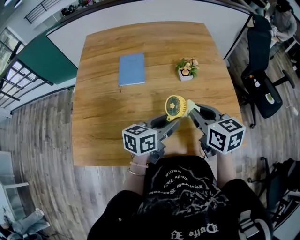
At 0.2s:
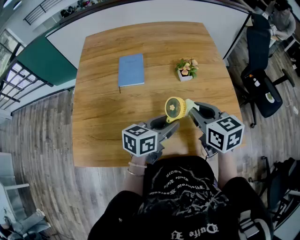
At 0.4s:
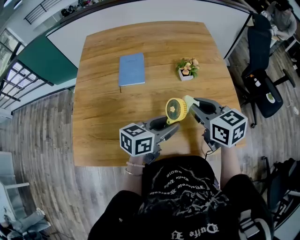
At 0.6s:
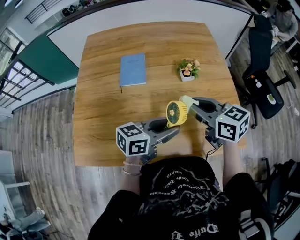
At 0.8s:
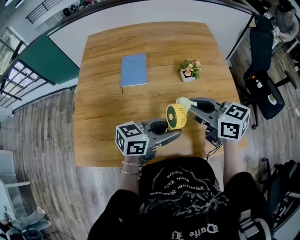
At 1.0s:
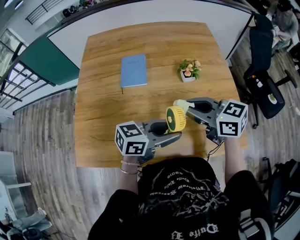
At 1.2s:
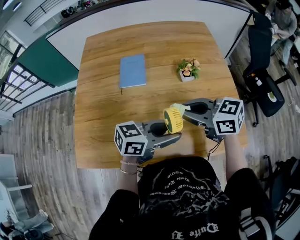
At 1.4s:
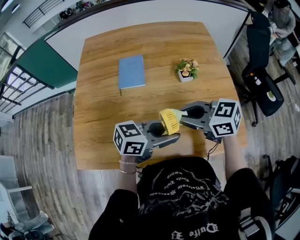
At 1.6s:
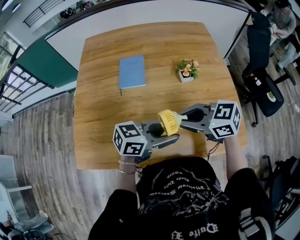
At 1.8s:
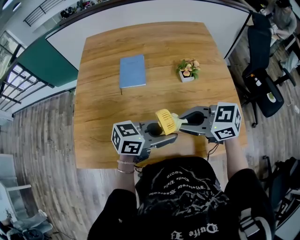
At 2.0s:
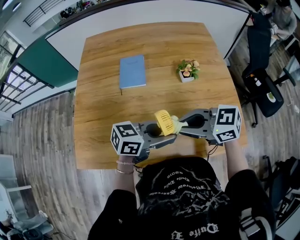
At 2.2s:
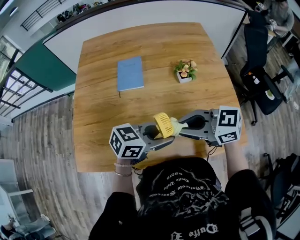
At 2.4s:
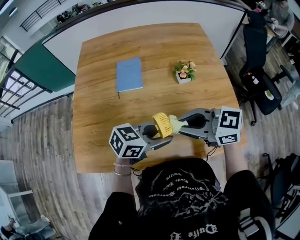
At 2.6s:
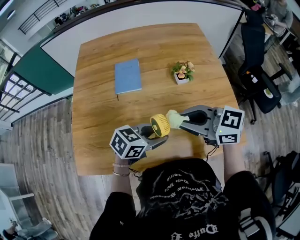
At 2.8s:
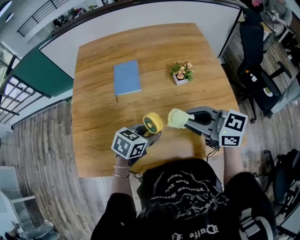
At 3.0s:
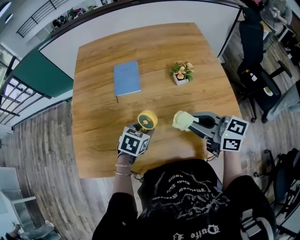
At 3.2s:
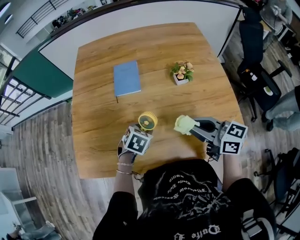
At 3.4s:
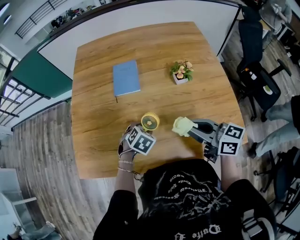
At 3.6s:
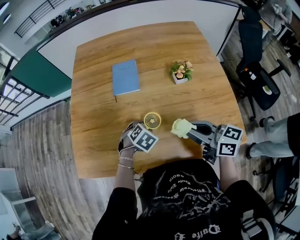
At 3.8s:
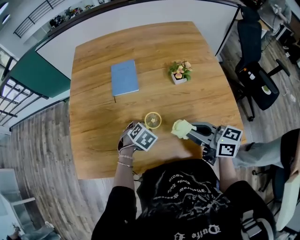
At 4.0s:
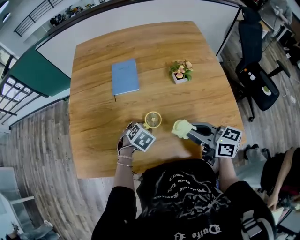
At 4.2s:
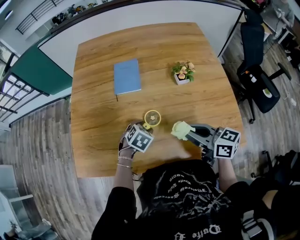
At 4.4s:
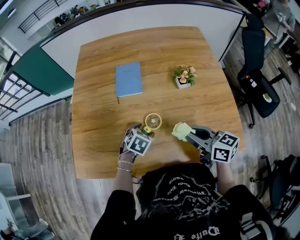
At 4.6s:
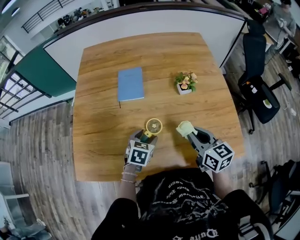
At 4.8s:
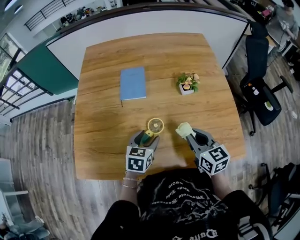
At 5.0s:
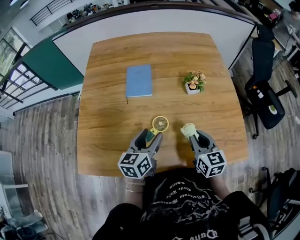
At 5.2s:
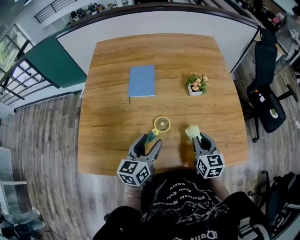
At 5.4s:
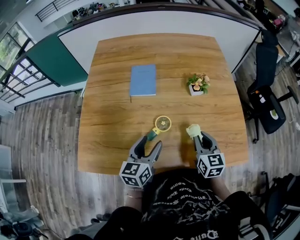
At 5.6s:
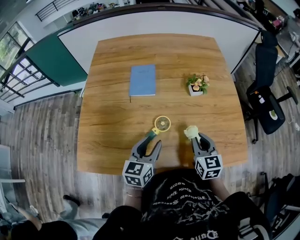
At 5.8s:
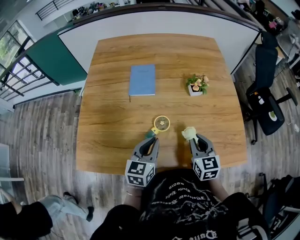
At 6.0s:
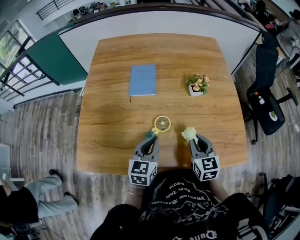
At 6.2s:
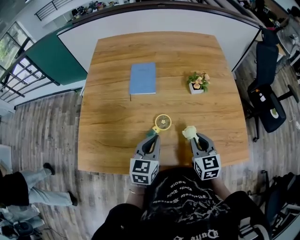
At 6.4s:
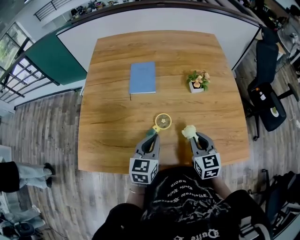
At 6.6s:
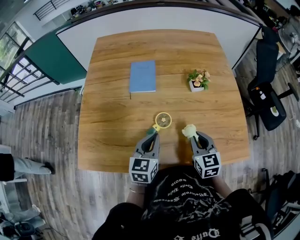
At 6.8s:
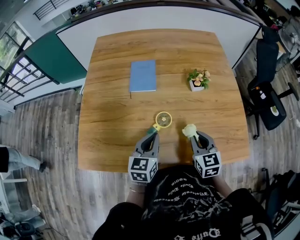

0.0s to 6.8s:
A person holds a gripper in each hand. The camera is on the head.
0.0s to 1.4s: The right gripper changes place by approximately 5 cm, and turns by about 40 degrees. Meanwhile the left gripper moves approximately 5 cm, and changes its angle by about 30 degrees.
1.4s to 2.8s: The left gripper heads downward, covering about 10 cm, and changes its angle by some 30 degrees.
2.8s to 4.0s: Both grippers move downward, some 10 cm. The right gripper turns by some 20 degrees. Meanwhile the left gripper changes its angle by approximately 30 degrees.
4.0s to 5.4s: The right gripper moves downward, about 5 cm, and turns by roughly 40 degrees; the left gripper is displaced upward and backward by about 15 cm, and angles its fingers upward, by approximately 50 degrees.
5.4s to 6.8s: The left gripper closes up.

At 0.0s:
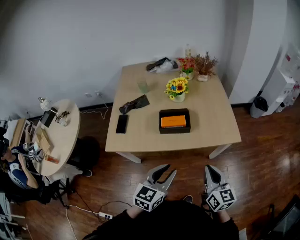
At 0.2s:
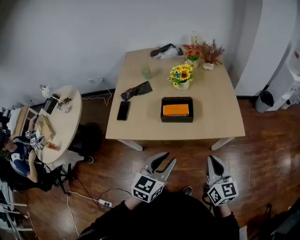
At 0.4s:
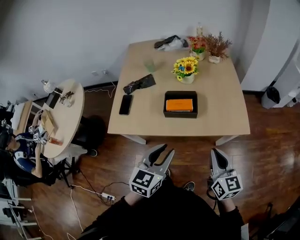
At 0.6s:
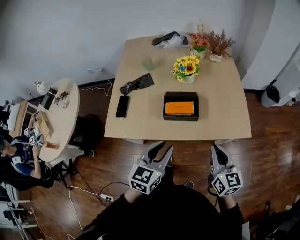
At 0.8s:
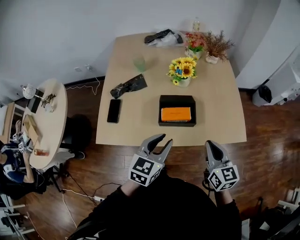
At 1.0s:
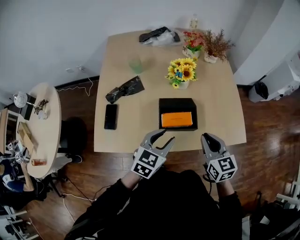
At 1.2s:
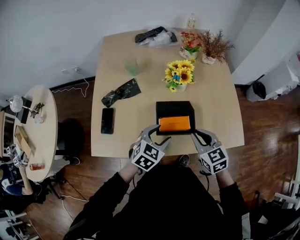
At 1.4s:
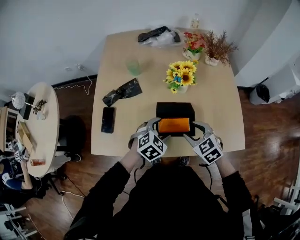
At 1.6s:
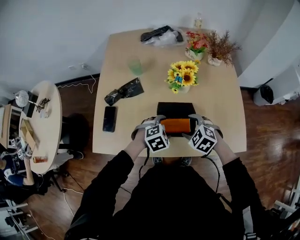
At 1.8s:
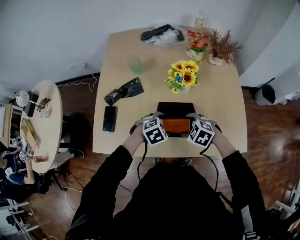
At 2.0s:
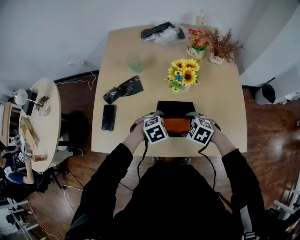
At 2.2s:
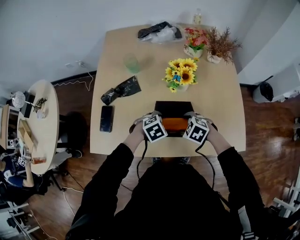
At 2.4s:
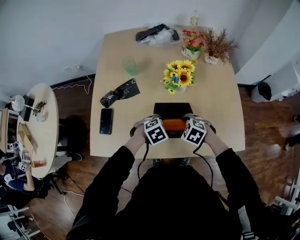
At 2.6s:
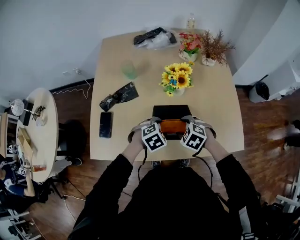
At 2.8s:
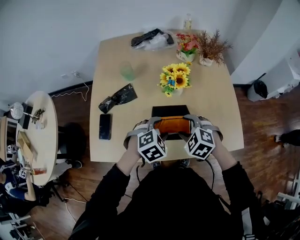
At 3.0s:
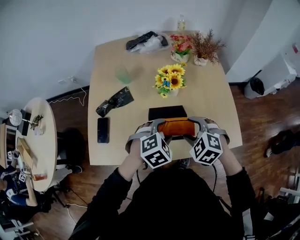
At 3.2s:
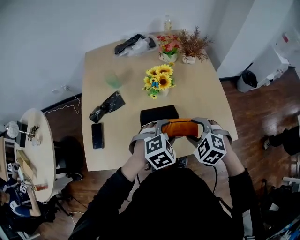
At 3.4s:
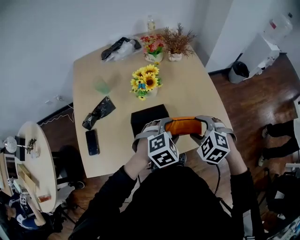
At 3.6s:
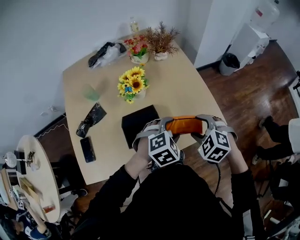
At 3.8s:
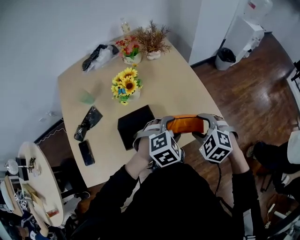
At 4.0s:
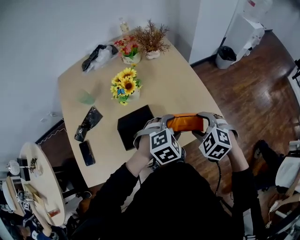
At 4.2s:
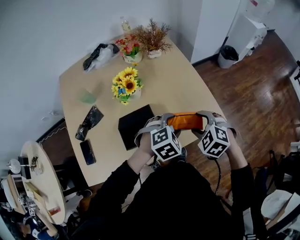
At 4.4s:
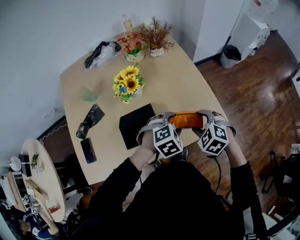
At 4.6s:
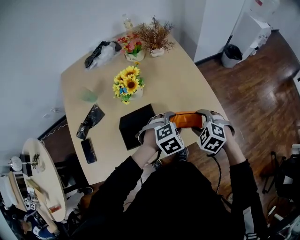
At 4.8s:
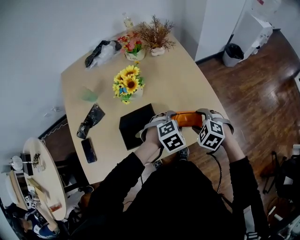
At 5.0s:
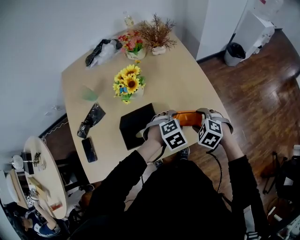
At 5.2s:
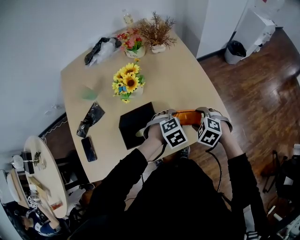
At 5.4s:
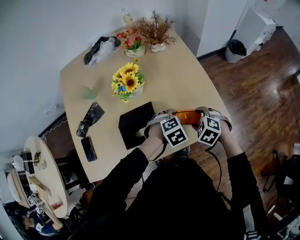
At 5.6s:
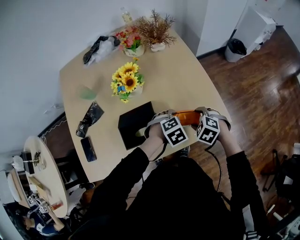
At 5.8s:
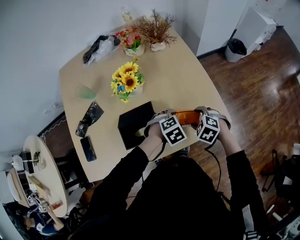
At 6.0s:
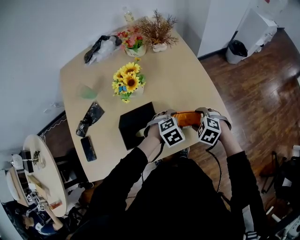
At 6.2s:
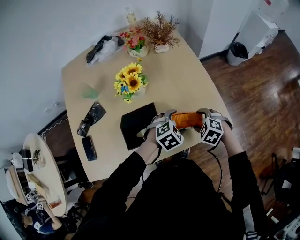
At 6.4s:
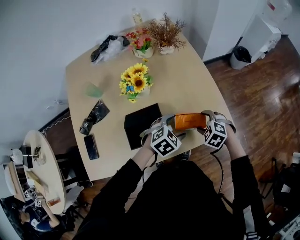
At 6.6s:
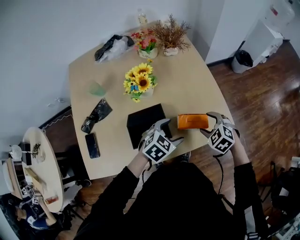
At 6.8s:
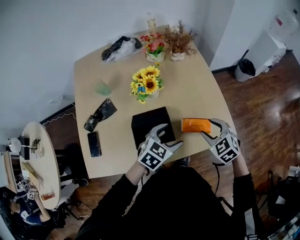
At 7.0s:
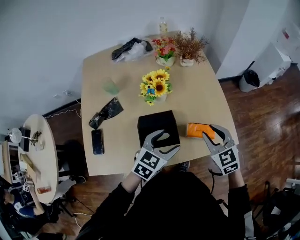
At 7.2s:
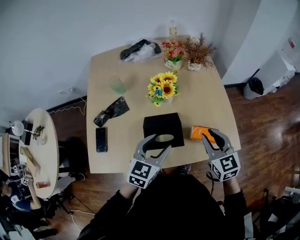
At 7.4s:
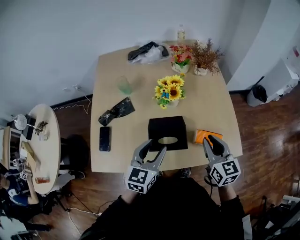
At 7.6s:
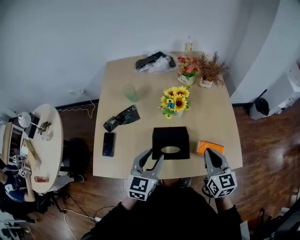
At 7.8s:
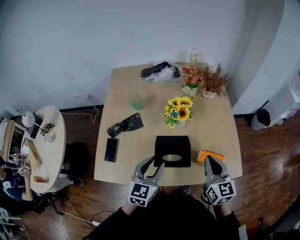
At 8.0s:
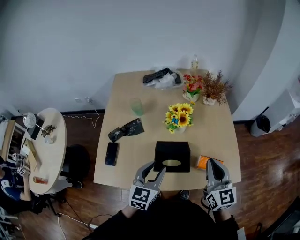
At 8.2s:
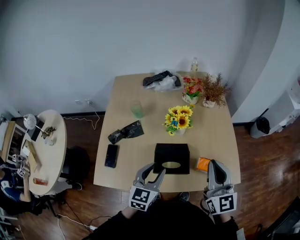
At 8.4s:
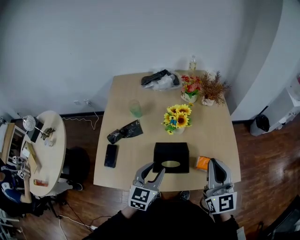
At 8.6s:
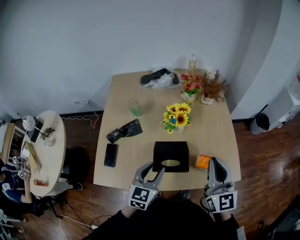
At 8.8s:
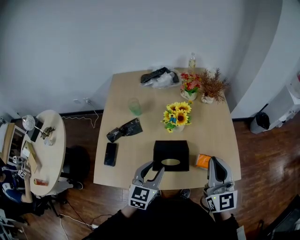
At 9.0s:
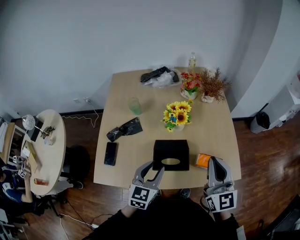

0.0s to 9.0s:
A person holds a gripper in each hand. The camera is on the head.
0.0s to 1.6s: The grippers both shift forward and downward by some 40 cm. The right gripper tips its fingers downward by approximately 40 degrees, and opens up. The left gripper tips its fingers downward by some 40 degrees, and opens.
1.6s to 3.0s: Both grippers travel together upward, roughly 10 cm.
3.0s to 4.4s: Both grippers move to the right, approximately 20 cm. The right gripper rotates about 20 degrees.
4.4s to 6.0s: The grippers both shift downward by about 10 cm.
6.0s to 7.6s: The left gripper travels to the left and upward by roughly 30 cm, and points its fingers about 40 degrees further upward, while the right gripper travels upward and to the left by some 25 cm, tilts its fingers some 50 degrees upward, and closes up.
7.6s to 9.0s: The right gripper moves upward, about 10 cm, and swivels about 20 degrees.

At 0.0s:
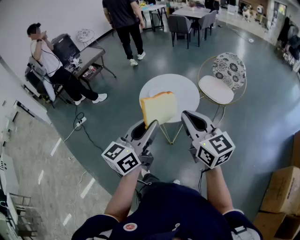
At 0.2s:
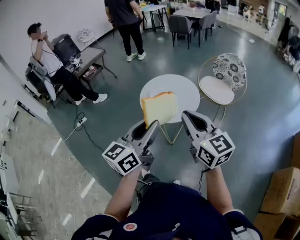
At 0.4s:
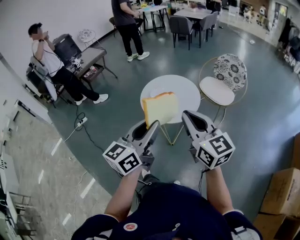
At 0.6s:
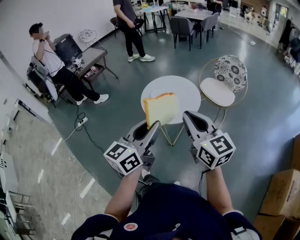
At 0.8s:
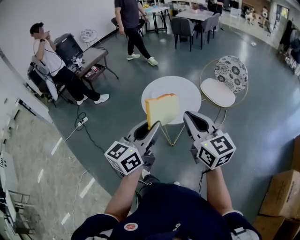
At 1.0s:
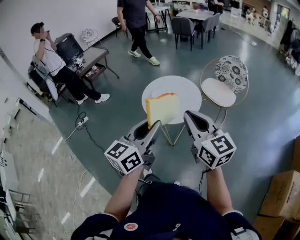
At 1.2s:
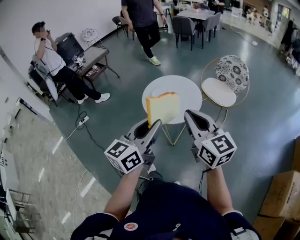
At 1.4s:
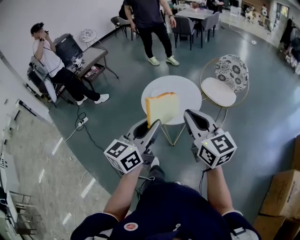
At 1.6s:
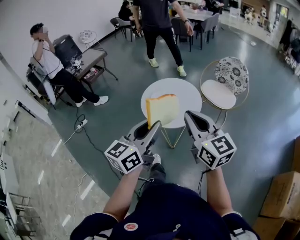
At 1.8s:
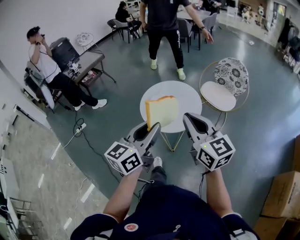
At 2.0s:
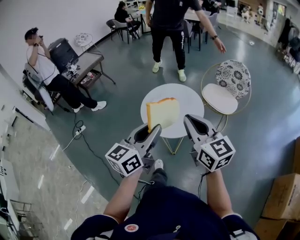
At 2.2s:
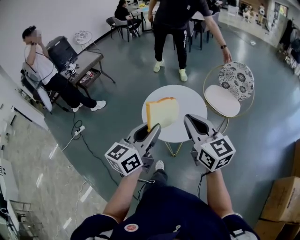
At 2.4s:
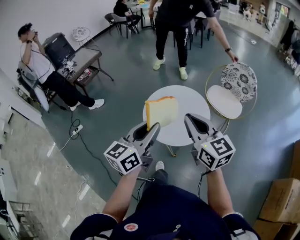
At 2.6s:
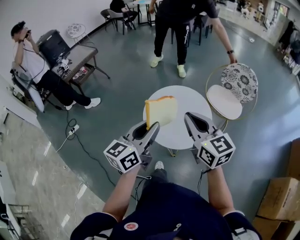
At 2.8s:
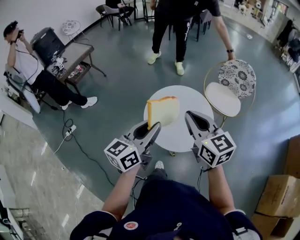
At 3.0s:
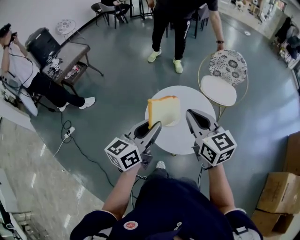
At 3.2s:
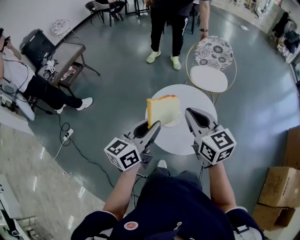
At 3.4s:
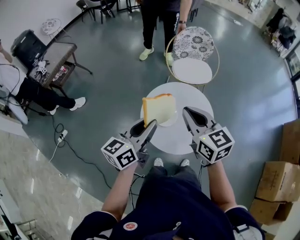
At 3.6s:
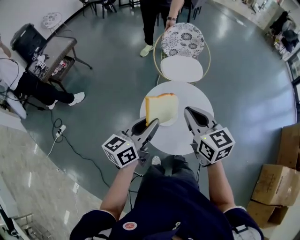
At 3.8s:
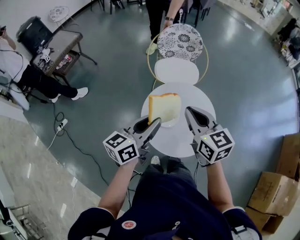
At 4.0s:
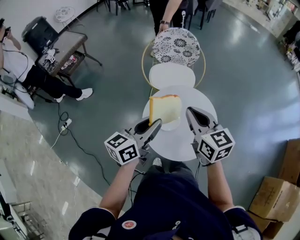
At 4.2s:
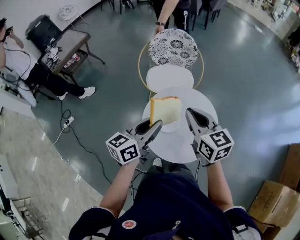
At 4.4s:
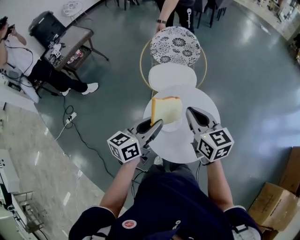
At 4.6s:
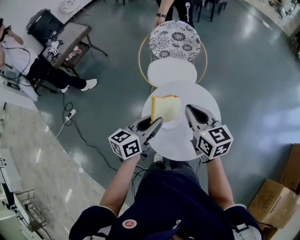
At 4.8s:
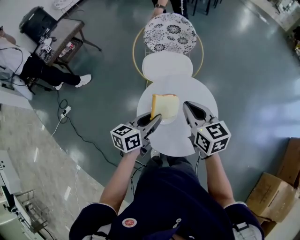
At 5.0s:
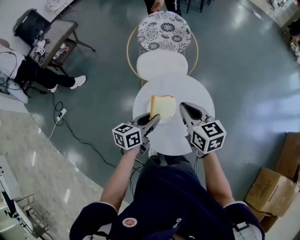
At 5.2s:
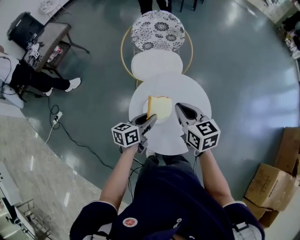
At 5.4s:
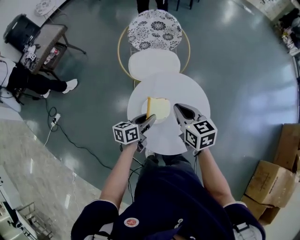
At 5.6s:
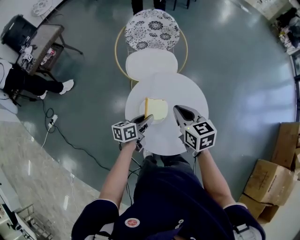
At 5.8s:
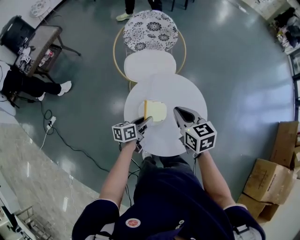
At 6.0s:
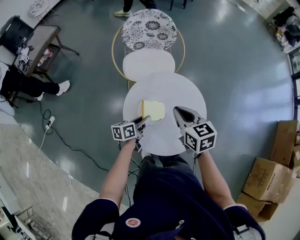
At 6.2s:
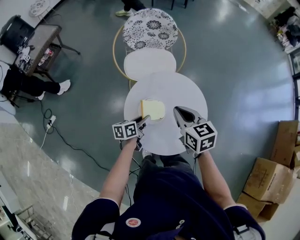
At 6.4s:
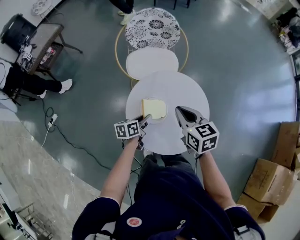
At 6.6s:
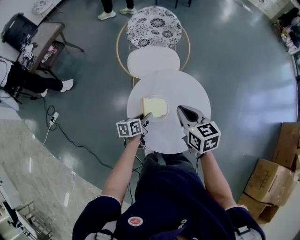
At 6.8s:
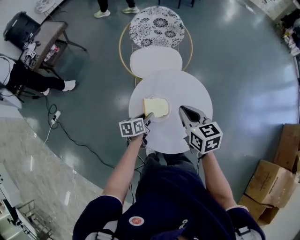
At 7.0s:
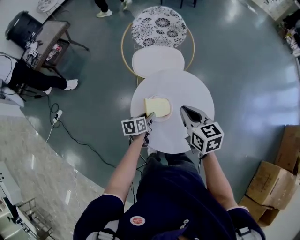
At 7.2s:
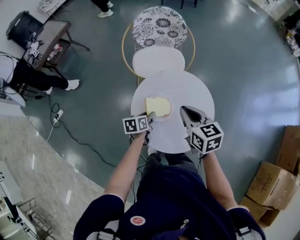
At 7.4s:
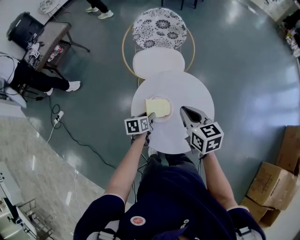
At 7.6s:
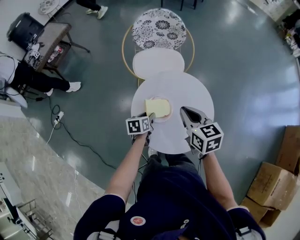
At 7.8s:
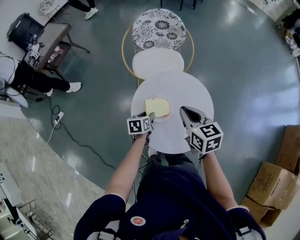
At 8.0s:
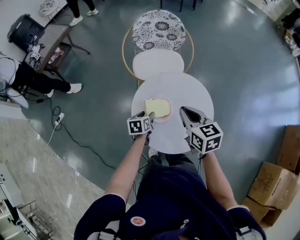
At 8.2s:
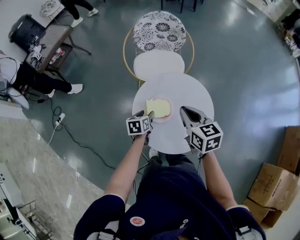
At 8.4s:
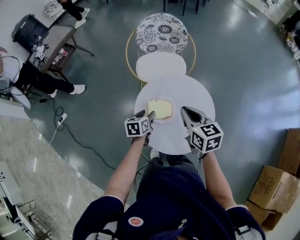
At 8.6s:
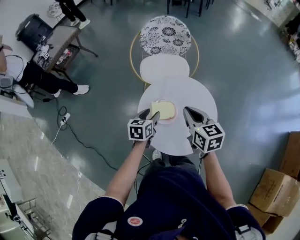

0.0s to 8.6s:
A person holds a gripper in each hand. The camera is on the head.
0.0s to 1.4s: The two grippers keep their place.
1.4s to 2.8s: Both grippers move forward and to the left, some 35 cm.
2.8s to 4.4s: The grippers both shift forward and downward by approximately 20 cm.
4.4s to 5.8s: The left gripper moves downward, some 25 cm, and swivels approximately 30 degrees. The right gripper goes roughly 10 cm downward.
5.8s to 7.2s: The left gripper changes place by approximately 5 cm, and changes its angle by approximately 20 degrees.
7.2s to 8.6s: The left gripper travels upward by roughly 10 cm, and swivels some 20 degrees.
